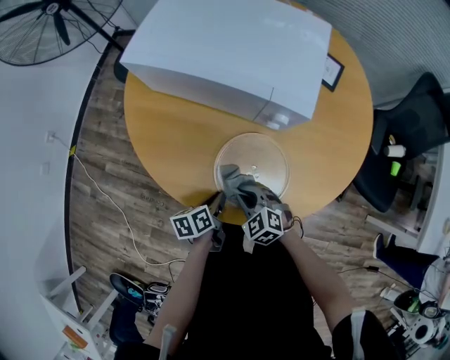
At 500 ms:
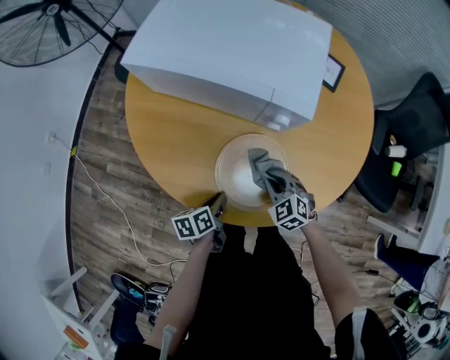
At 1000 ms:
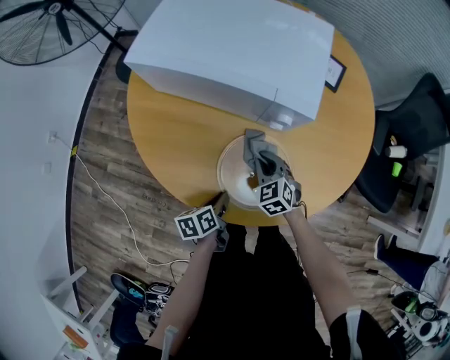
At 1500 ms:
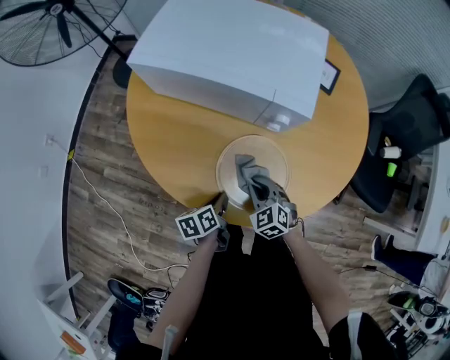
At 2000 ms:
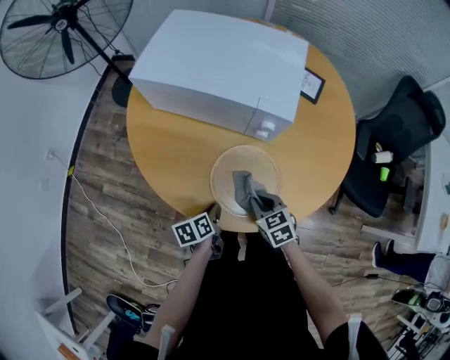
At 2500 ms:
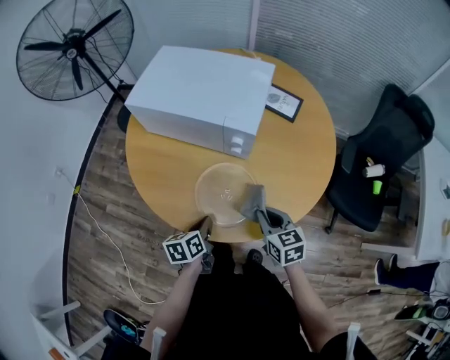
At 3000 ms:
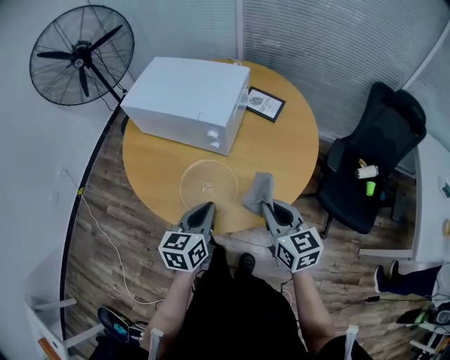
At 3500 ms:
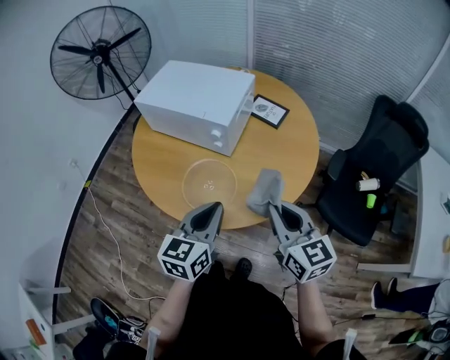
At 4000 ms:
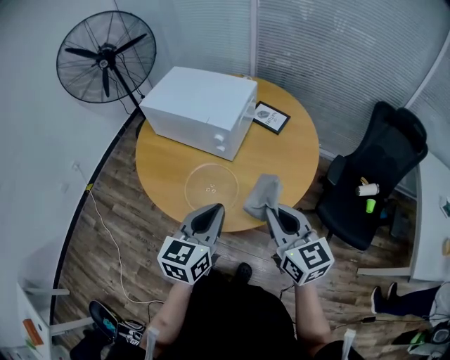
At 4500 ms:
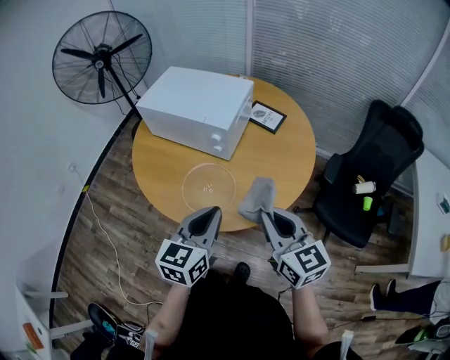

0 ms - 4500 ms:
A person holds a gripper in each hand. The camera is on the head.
0 ms - 2000 ms: The right gripper heads to the right, covering approximately 5 cm, travels forward and back again, about 10 cm each way, and turns by some 30 degrees.
2000 ms - 4500 ms: The right gripper moves upward, to the right and backward, about 40 cm, and angles its fingers upward, by roughly 40 degrees; the left gripper heads upward and to the right, covering some 40 cm, and rolls clockwise, seen from behind, by approximately 50 degrees.

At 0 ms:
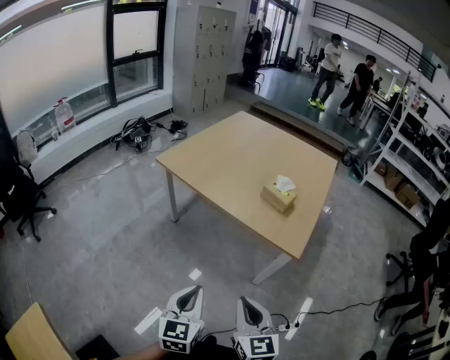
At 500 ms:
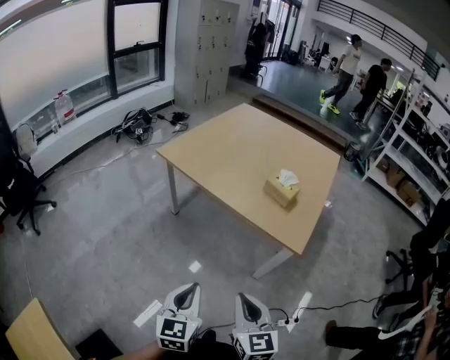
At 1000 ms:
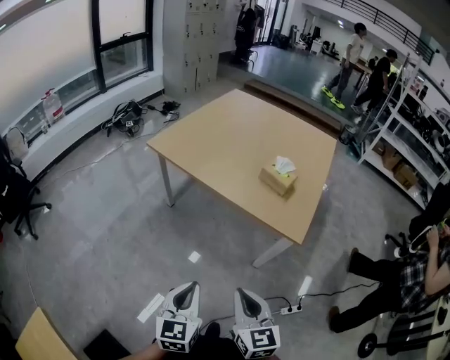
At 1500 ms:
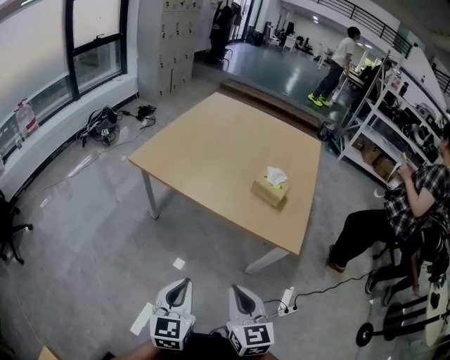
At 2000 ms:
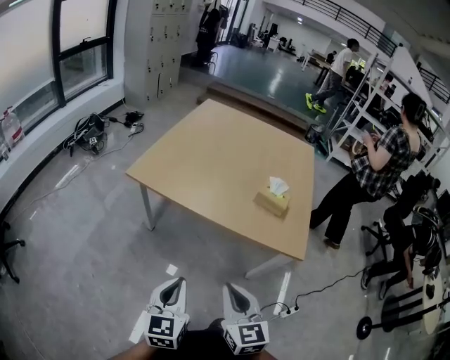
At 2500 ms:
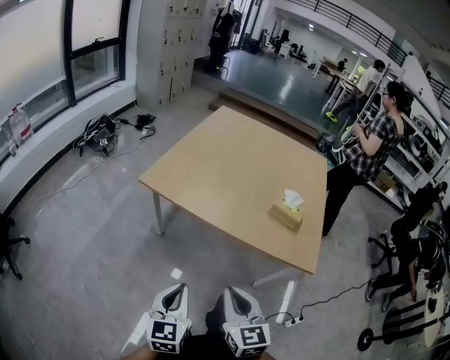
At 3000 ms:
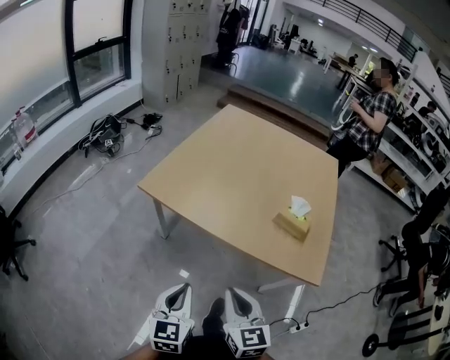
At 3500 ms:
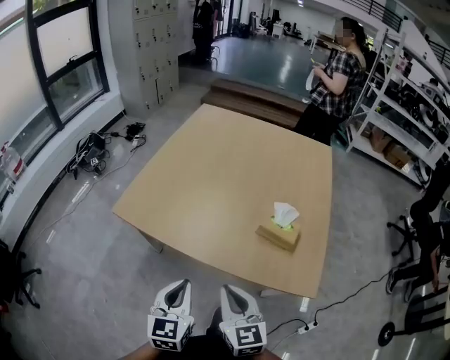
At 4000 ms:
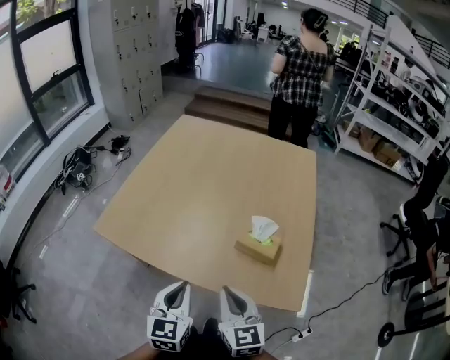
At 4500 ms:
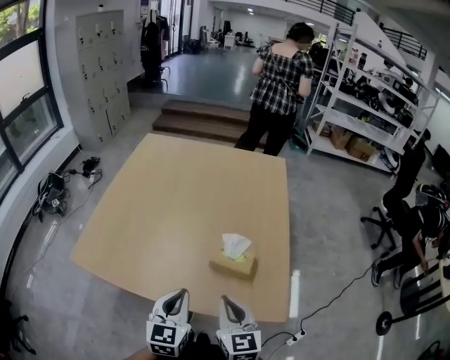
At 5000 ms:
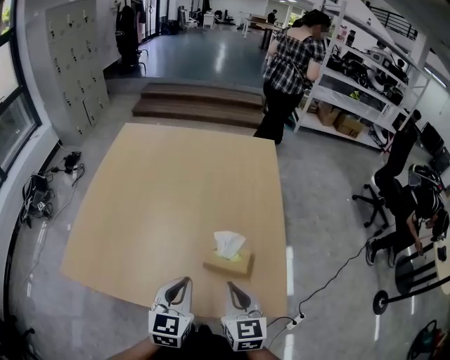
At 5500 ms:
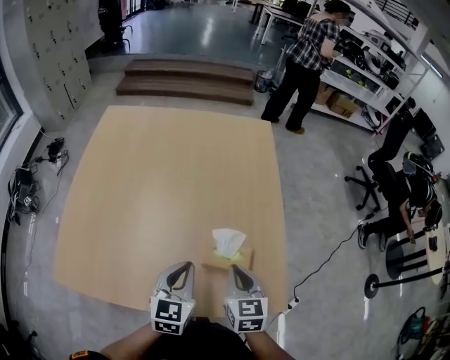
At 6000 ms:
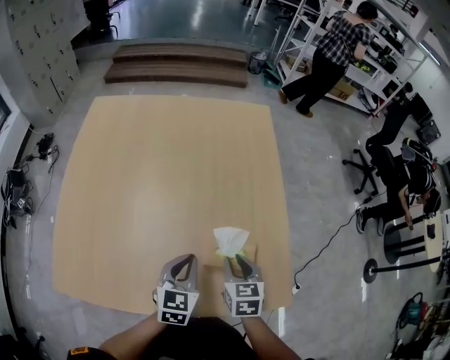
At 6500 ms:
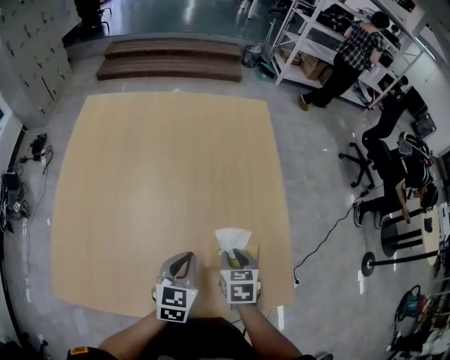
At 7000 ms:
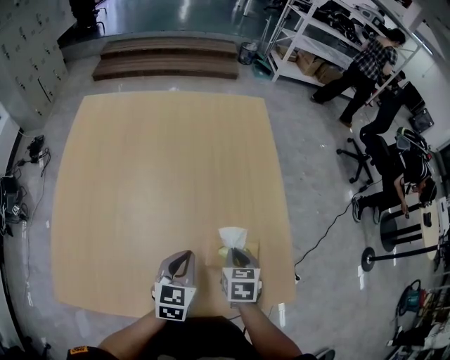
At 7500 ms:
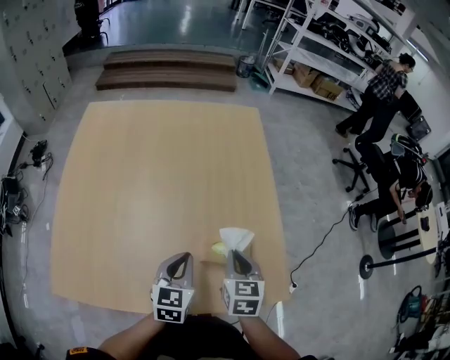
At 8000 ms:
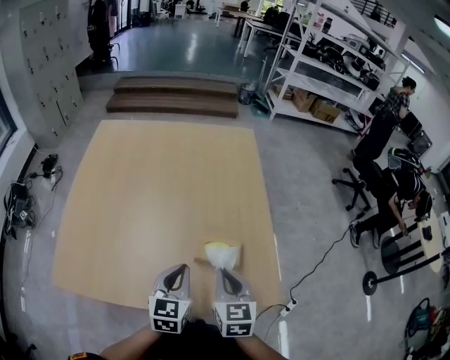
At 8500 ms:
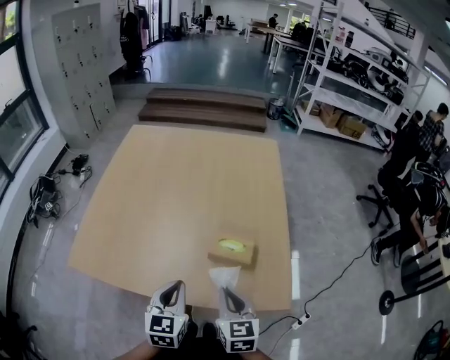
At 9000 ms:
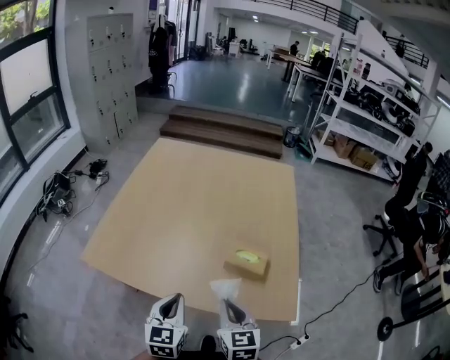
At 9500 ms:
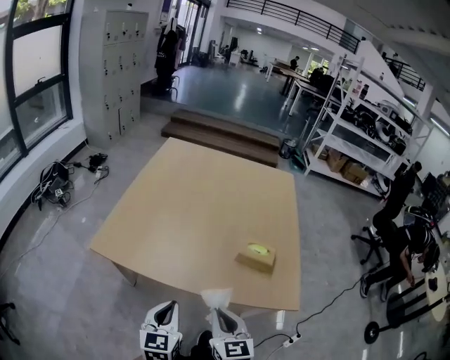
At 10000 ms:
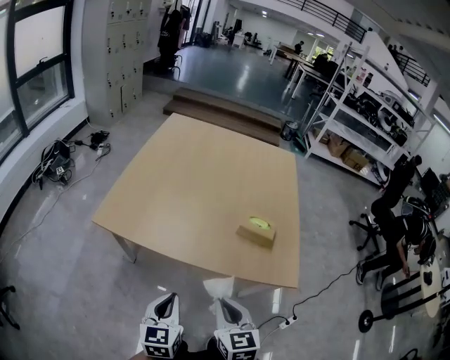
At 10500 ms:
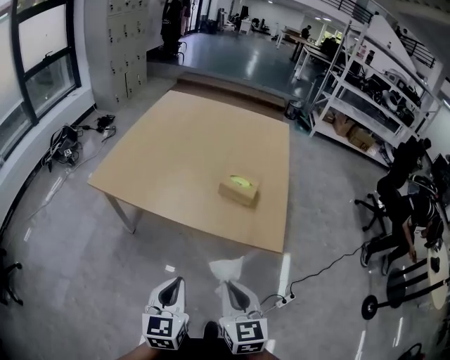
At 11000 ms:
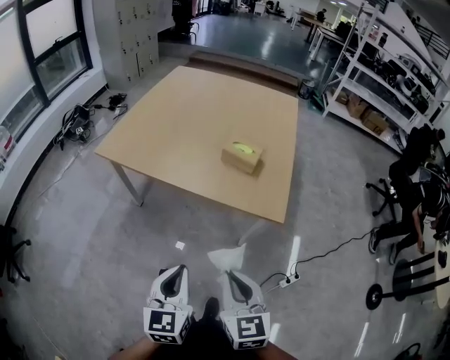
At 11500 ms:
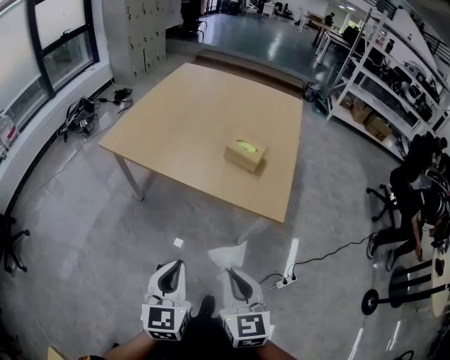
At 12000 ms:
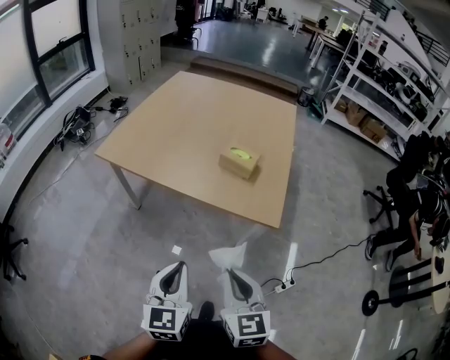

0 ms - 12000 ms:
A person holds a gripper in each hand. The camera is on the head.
0 ms - 2000 ms: The two grippers go some 20 cm forward and to the left.
2000 ms - 4000 ms: The two grippers go approximately 25 cm forward and to the right.
4000 ms - 6000 ms: The left gripper moves some 25 cm, and rotates some 30 degrees. Meanwhile the right gripper changes place by roughly 25 cm, turns by approximately 40 degrees, and opens.
6000 ms - 8000 ms: The right gripper is displaced upward and backward by approximately 10 cm, and closes its fingers. Meanwhile the left gripper goes roughly 5 cm backward.
8000 ms - 10000 ms: The grippers both shift backward and to the left by roughly 30 cm. The left gripper swivels roughly 20 degrees.
10000 ms - 12000 ms: Both grippers travel together backward and to the right, roughly 25 cm.

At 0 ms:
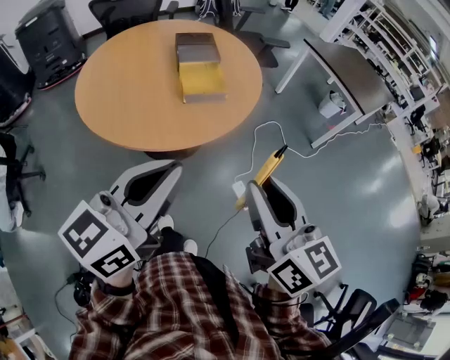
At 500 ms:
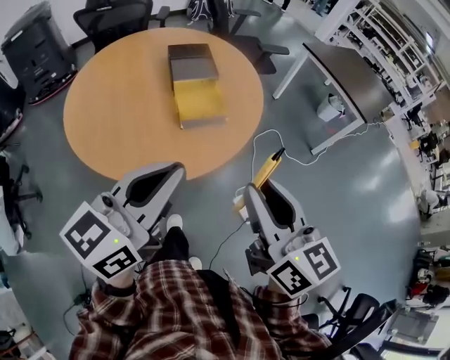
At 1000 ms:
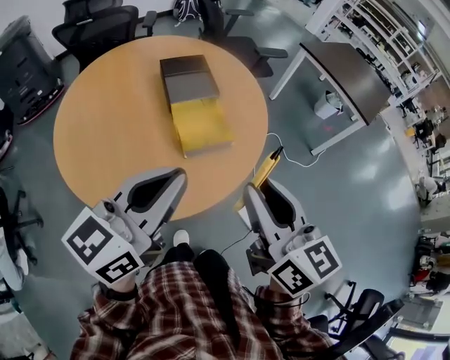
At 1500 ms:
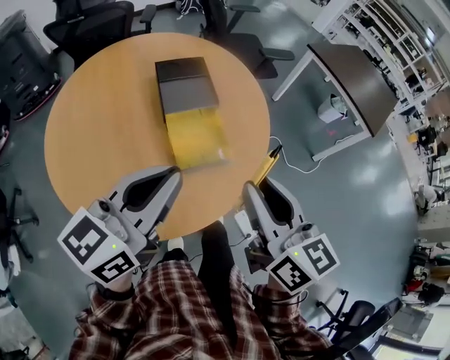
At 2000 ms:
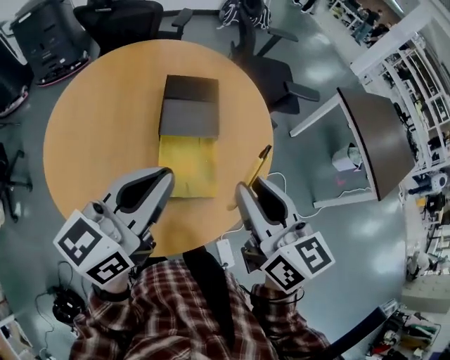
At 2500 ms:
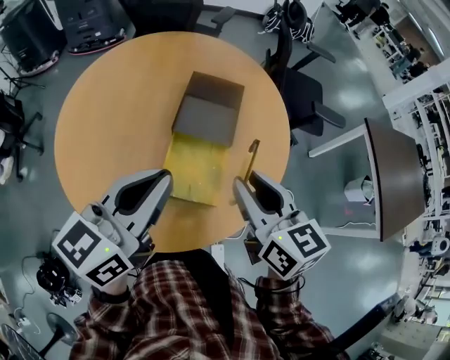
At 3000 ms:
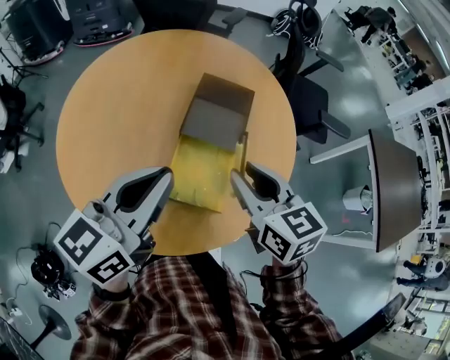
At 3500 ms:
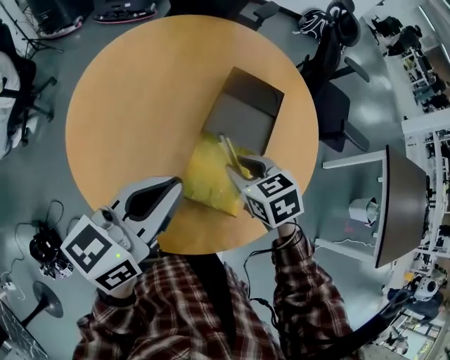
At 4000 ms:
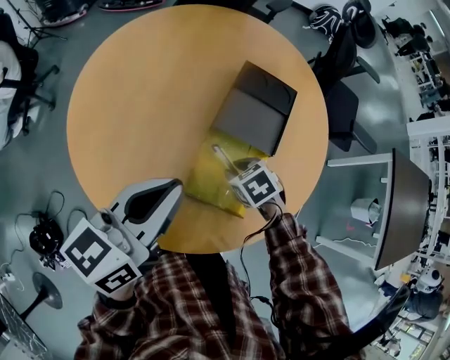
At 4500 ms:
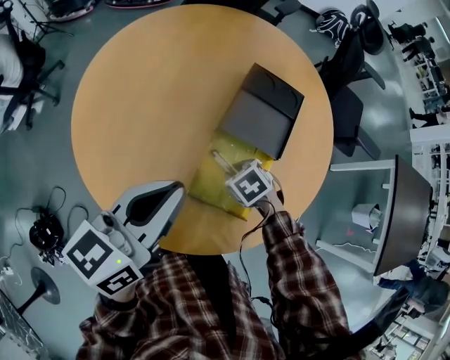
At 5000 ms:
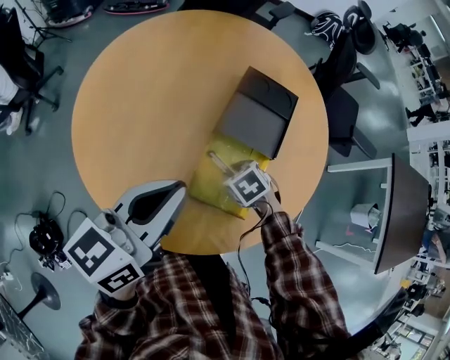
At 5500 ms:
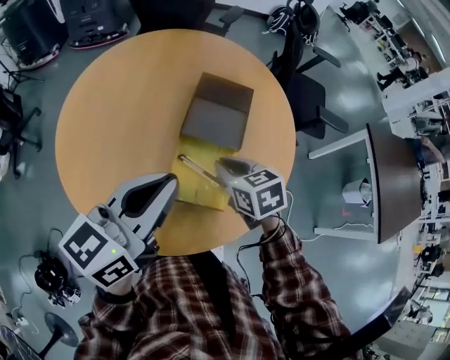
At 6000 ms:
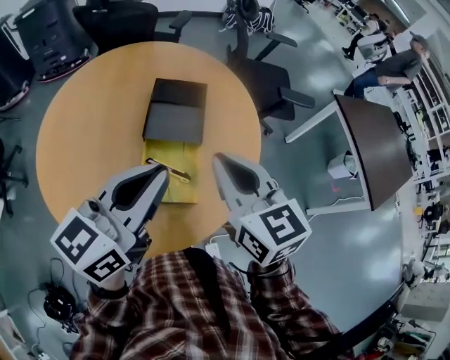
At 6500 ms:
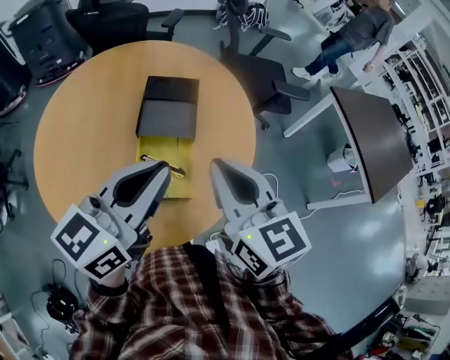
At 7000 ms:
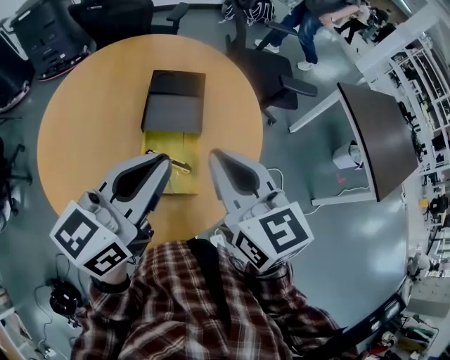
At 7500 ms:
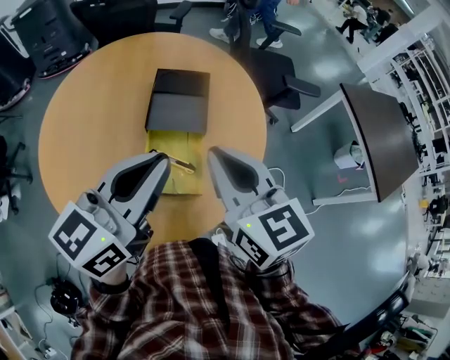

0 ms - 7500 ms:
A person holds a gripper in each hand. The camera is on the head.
0 ms - 2000 ms: The two grippers travel together, forward, roughly 50 cm.
2000 ms - 4000 ms: The left gripper moves downward, about 10 cm, and turns by about 30 degrees. Meanwhile the right gripper moves downward, some 30 cm, and angles its fingers downward, by about 60 degrees.
4000 ms - 5500 ms: The left gripper travels upward by approximately 5 cm. Meanwhile the right gripper travels upward by approximately 15 cm, and turns by roughly 30 degrees.
5500 ms - 7500 ms: The left gripper moves to the right, roughly 10 cm. Meanwhile the right gripper heads upward, covering roughly 20 cm, and tips its fingers upward by about 30 degrees.

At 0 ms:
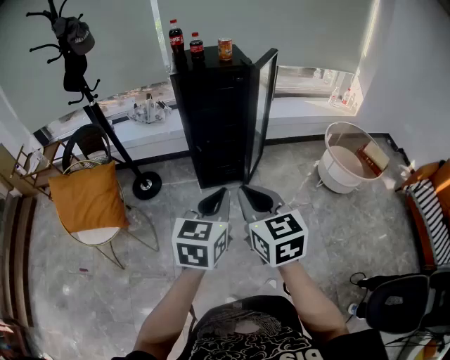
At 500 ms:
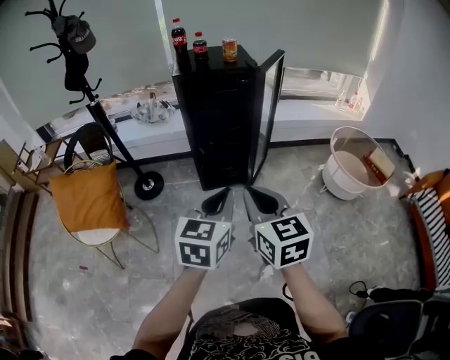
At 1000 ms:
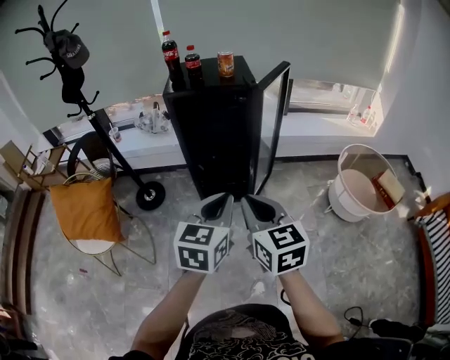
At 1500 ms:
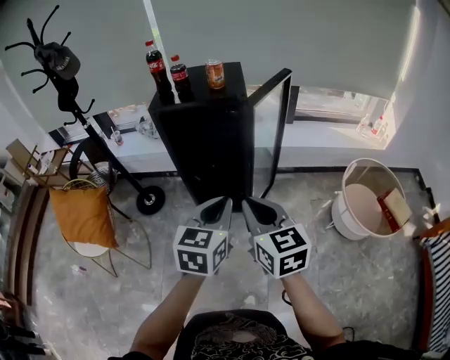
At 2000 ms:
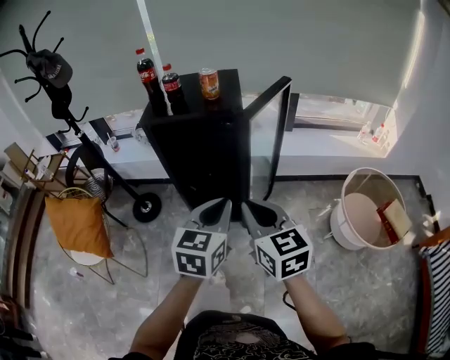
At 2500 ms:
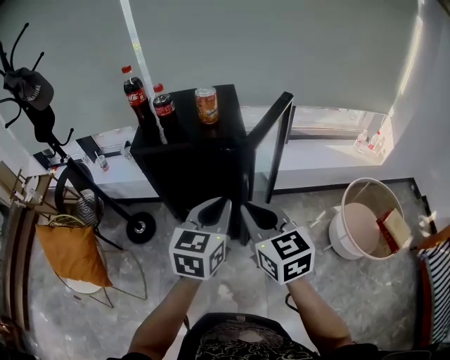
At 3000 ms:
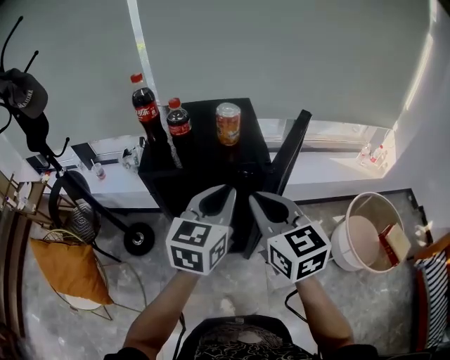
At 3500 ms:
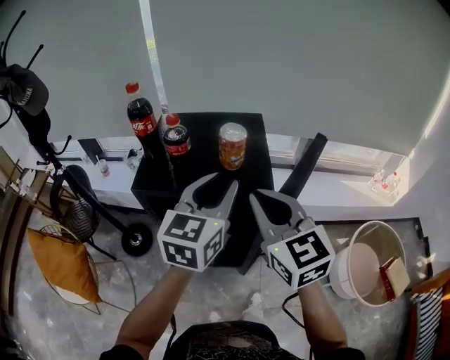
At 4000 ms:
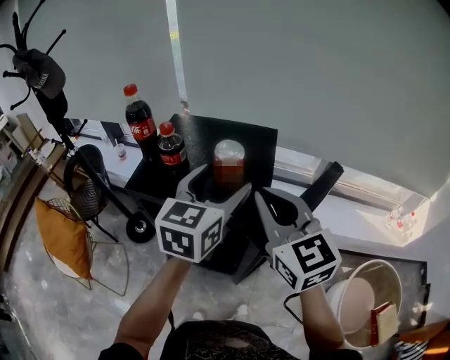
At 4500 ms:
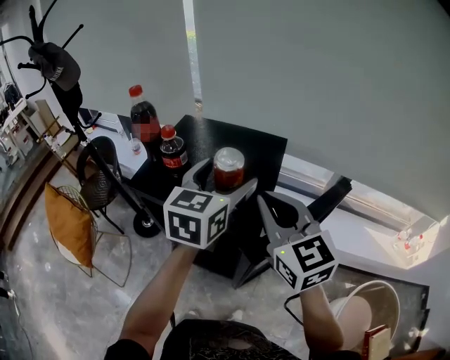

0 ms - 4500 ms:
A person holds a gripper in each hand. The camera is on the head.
0 ms - 2000 ms: Both grippers move forward and to the right, some 35 cm.
2000 ms - 4500 ms: The grippers both shift forward by about 40 cm. The left gripper opens up, while the right gripper swivels roughly 20 degrees.
